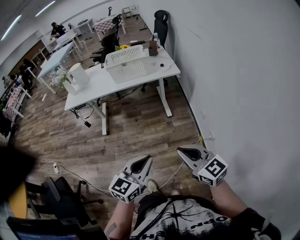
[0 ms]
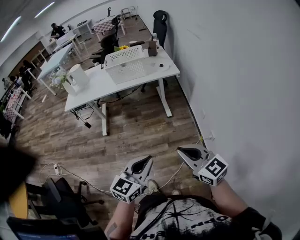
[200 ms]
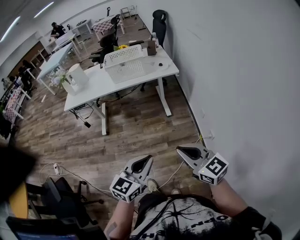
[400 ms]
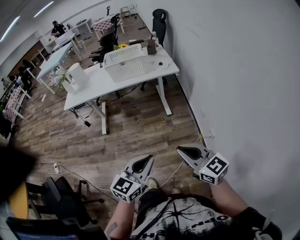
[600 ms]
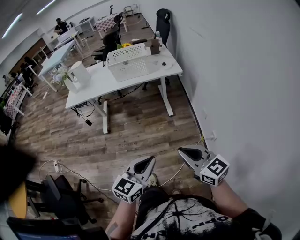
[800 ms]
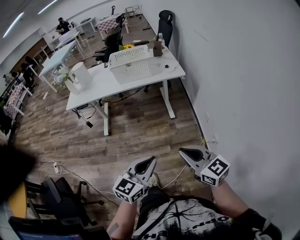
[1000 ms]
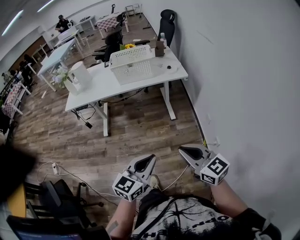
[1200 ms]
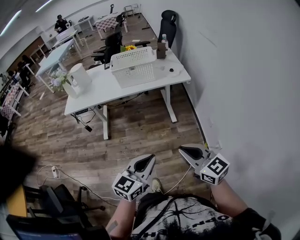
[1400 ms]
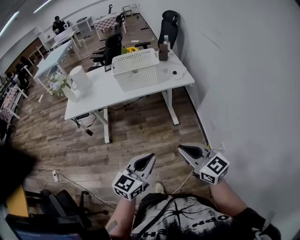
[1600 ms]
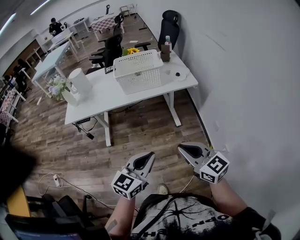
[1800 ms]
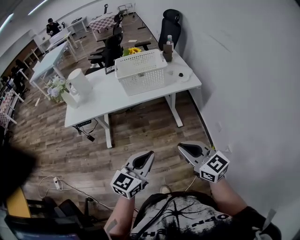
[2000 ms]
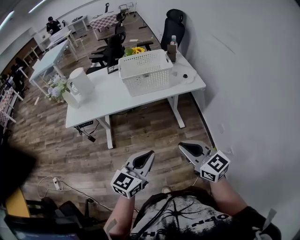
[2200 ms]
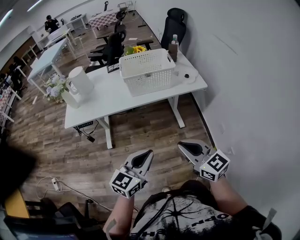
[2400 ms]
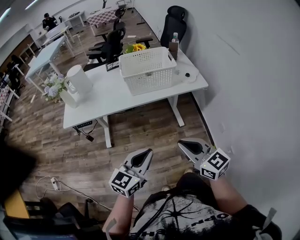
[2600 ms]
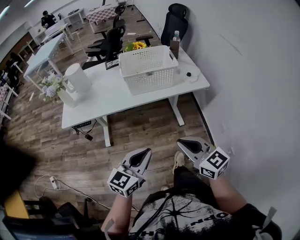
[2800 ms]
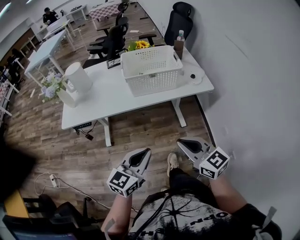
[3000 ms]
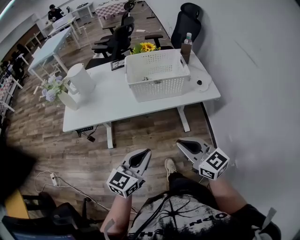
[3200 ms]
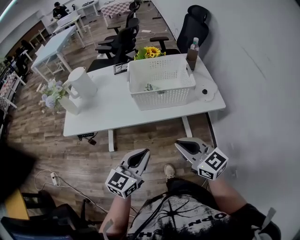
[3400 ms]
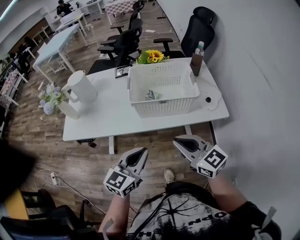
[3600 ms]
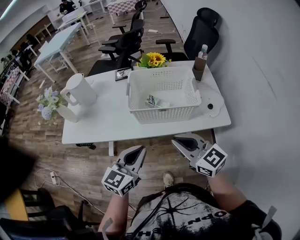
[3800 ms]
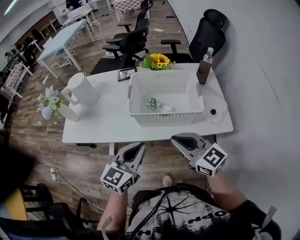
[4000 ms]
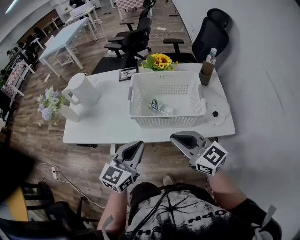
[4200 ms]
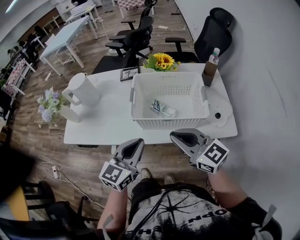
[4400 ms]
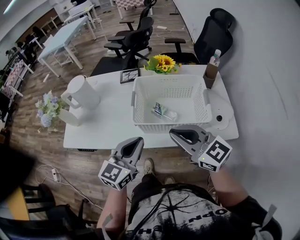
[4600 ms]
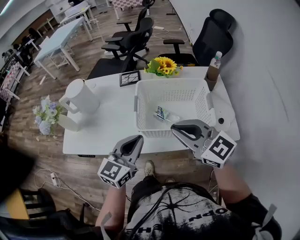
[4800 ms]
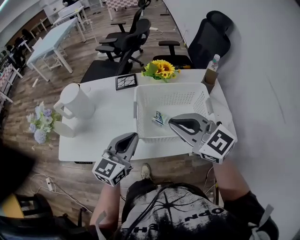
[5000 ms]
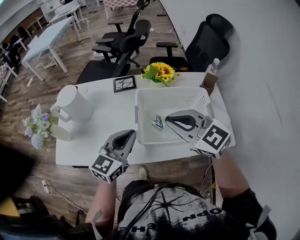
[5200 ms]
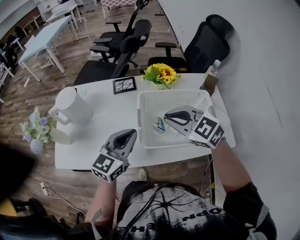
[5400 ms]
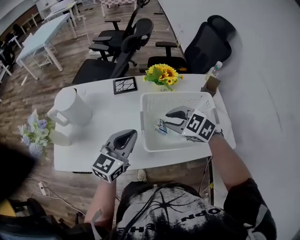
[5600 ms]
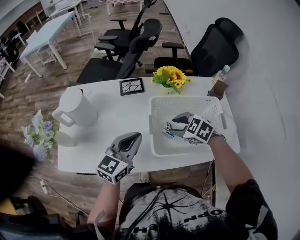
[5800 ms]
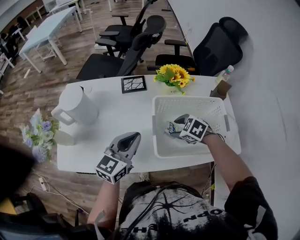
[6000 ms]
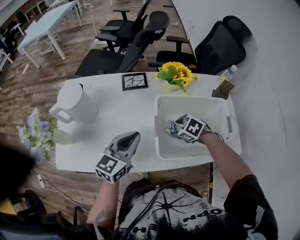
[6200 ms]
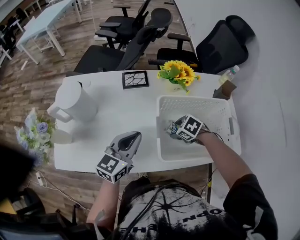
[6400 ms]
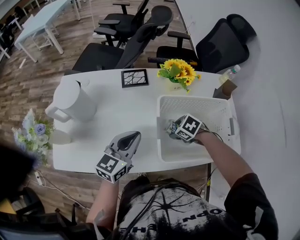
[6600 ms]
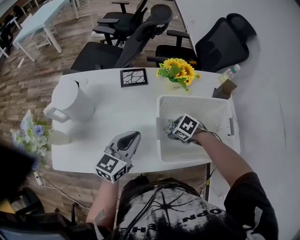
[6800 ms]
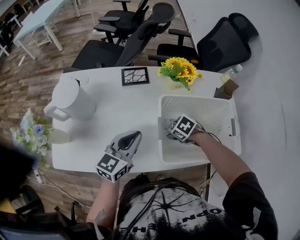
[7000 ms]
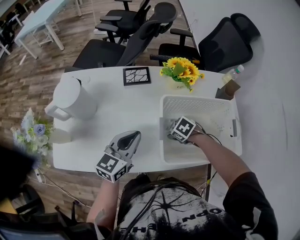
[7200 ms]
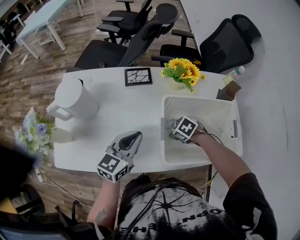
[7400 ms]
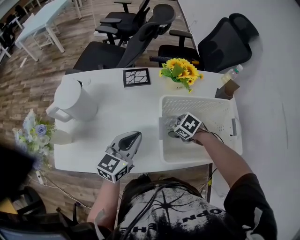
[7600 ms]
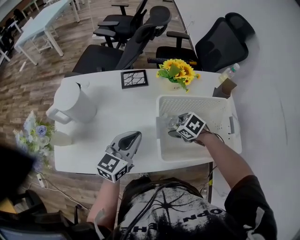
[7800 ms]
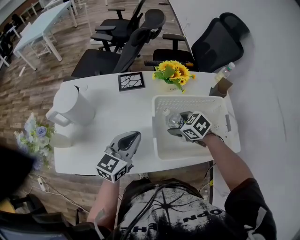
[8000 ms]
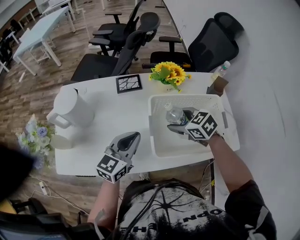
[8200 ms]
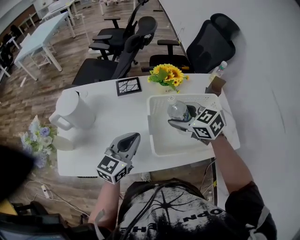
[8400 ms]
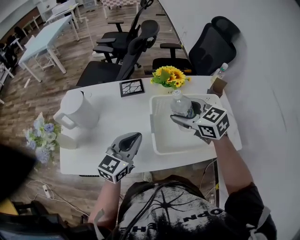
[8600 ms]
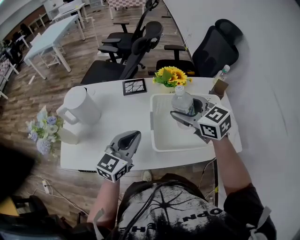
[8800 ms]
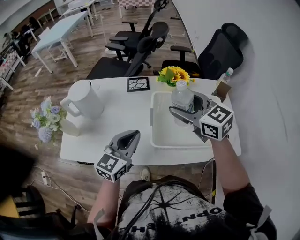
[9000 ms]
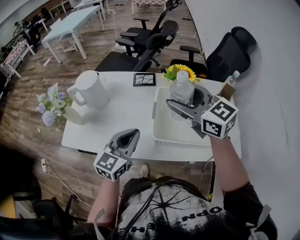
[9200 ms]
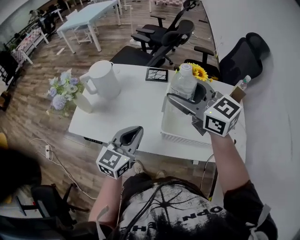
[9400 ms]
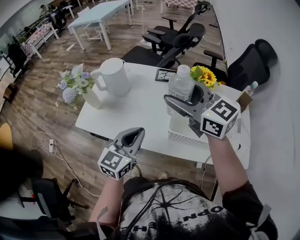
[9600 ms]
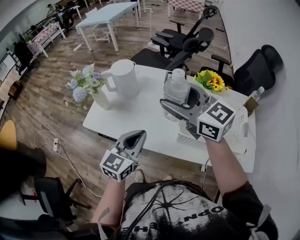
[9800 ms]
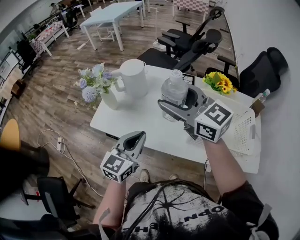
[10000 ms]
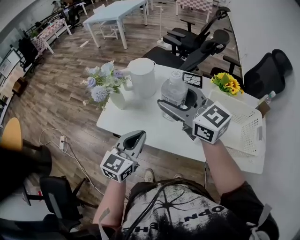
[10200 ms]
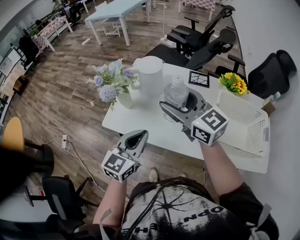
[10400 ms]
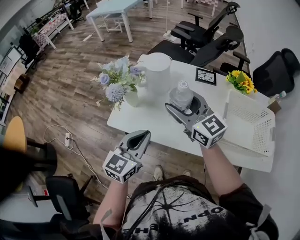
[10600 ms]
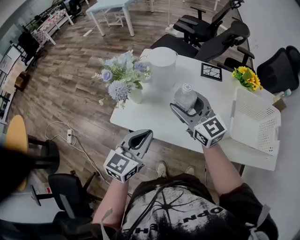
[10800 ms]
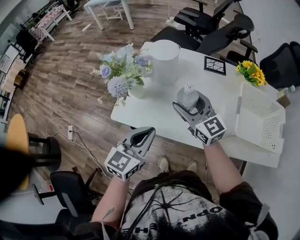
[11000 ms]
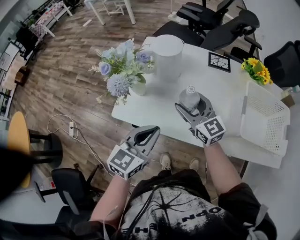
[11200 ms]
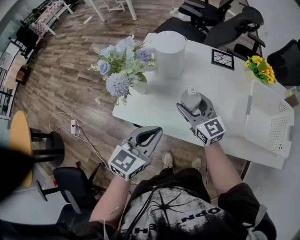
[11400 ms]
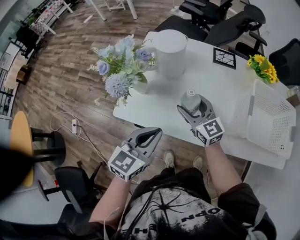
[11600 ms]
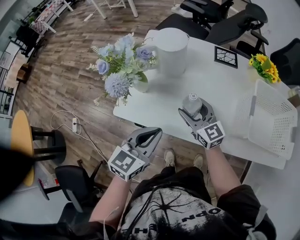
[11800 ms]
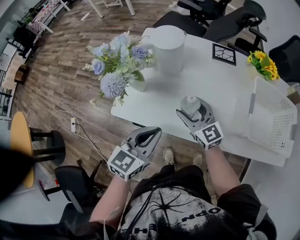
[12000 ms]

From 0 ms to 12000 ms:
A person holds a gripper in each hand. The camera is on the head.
From 0 ms to 1600 ms: Both grippers move forward and to the left, some 20 cm.
From 1600 ms to 3000 ms: The grippers both shift forward and to the left by roughly 25 cm.
From 3000 ms to 4400 ms: The grippers both shift forward by some 30 cm.
From 4400 ms to 6000 ms: The right gripper travels forward and downward by some 30 cm, tilts its fingers approximately 60 degrees downward, and opens up. The left gripper moves forward and to the left, some 25 cm.
From 6000 ms to 7600 ms: The left gripper ends up some 5 cm from where it was. The right gripper moves downward, approximately 5 cm.
From 7600 ms to 9000 ms: The left gripper goes about 10 cm upward and backward. Meanwhile the right gripper moves upward, roughly 30 cm, and angles its fingers upward, by roughly 50 degrees.
From 9000 ms to 10400 ms: Both grippers travel together to the left, approximately 25 cm. The right gripper swivels some 20 degrees.
From 10400 ms to 12000 ms: The left gripper is displaced downward by approximately 10 cm. Meanwhile the right gripper shifts approximately 25 cm downward.

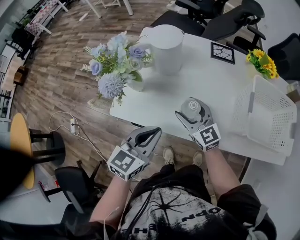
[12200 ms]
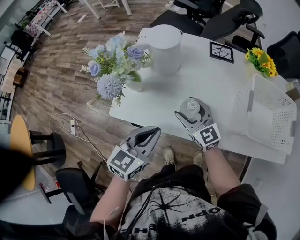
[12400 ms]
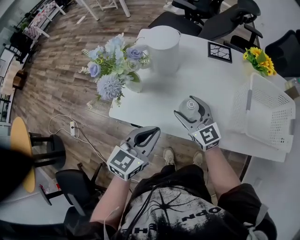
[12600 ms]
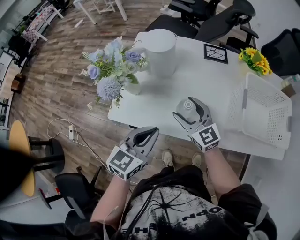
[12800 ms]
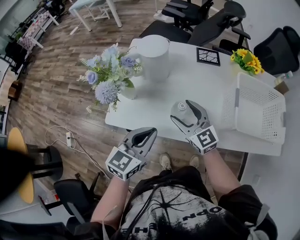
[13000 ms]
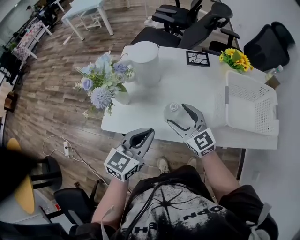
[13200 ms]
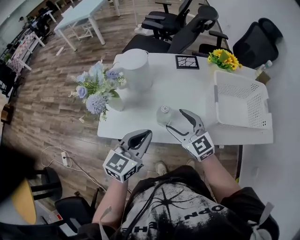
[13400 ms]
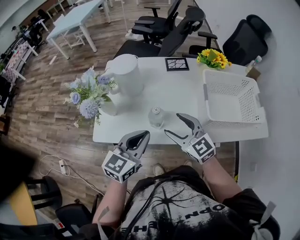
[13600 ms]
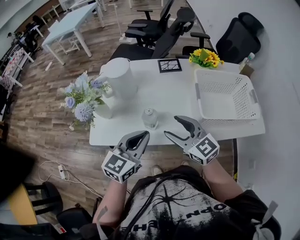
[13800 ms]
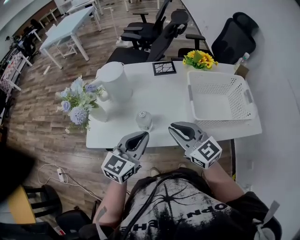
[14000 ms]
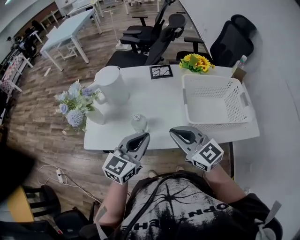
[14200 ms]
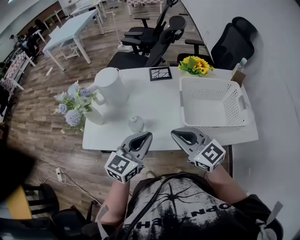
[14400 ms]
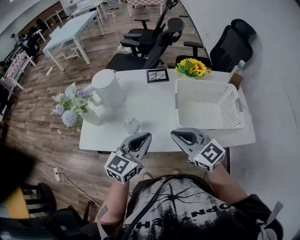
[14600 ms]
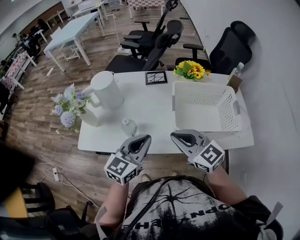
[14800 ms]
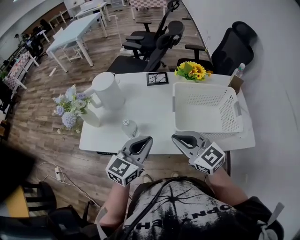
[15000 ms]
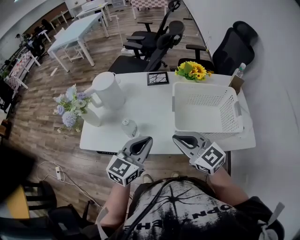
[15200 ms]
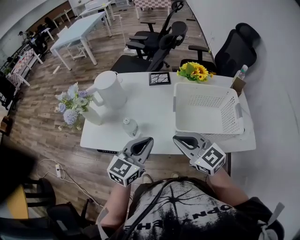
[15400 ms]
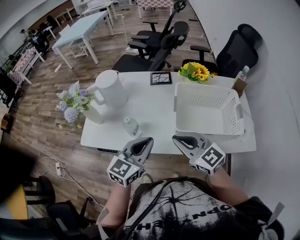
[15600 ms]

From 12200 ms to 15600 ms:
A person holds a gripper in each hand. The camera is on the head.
From 12200 ms to 13800 ms: The right gripper heads upward, to the right and backward, covering roughly 15 cm; the left gripper heads to the right and upward, covering about 10 cm.
From 13800 ms to 15600 ms: Both grippers move to the right, about 10 cm. The right gripper closes up.

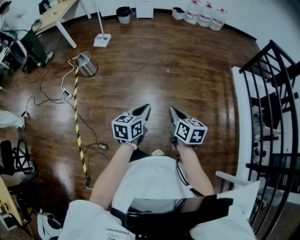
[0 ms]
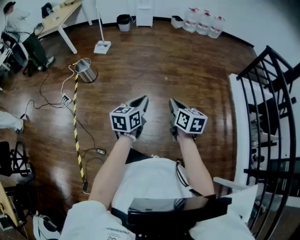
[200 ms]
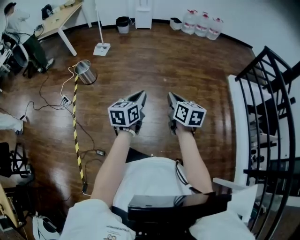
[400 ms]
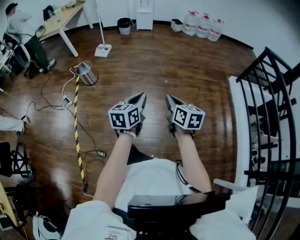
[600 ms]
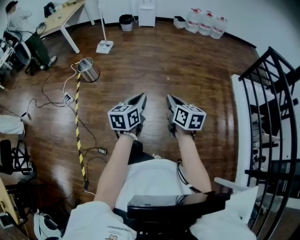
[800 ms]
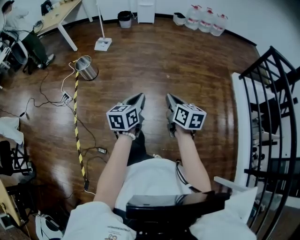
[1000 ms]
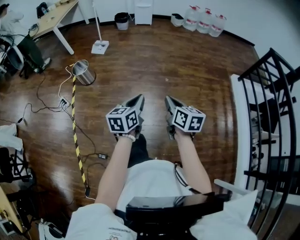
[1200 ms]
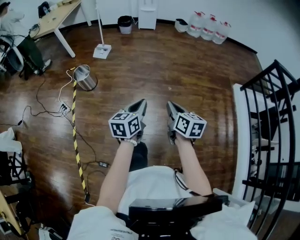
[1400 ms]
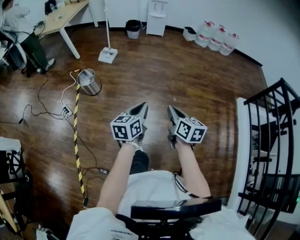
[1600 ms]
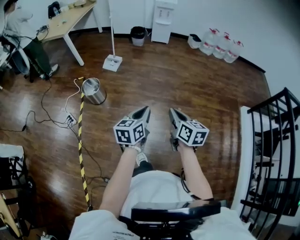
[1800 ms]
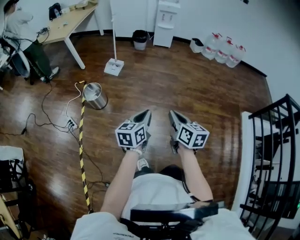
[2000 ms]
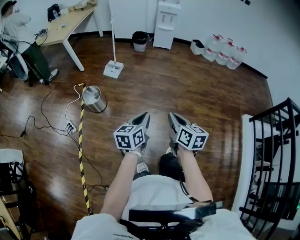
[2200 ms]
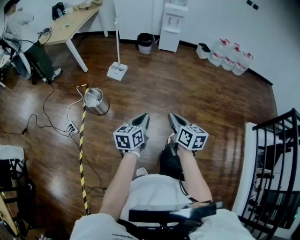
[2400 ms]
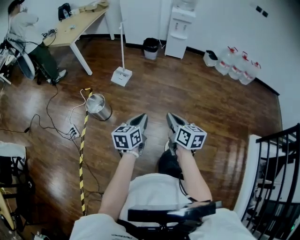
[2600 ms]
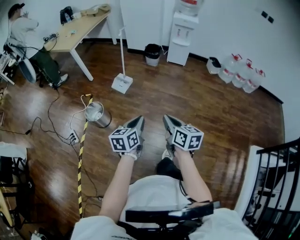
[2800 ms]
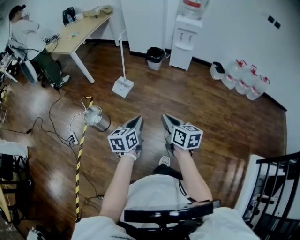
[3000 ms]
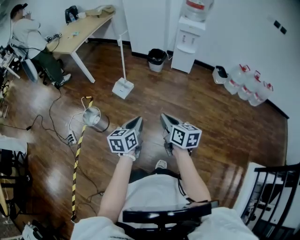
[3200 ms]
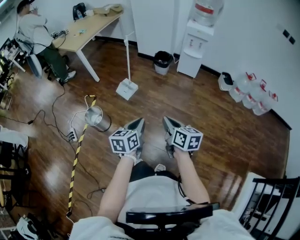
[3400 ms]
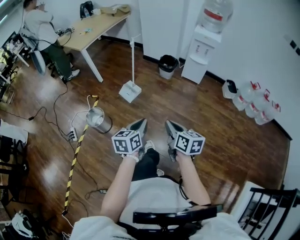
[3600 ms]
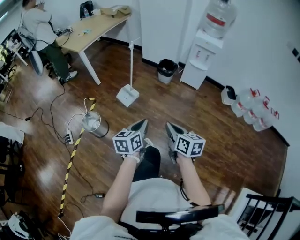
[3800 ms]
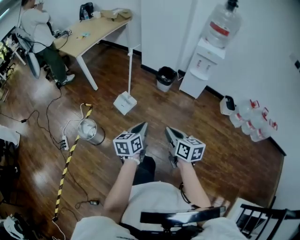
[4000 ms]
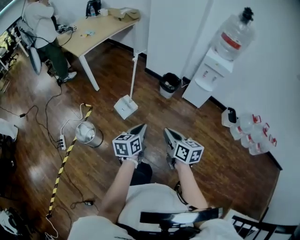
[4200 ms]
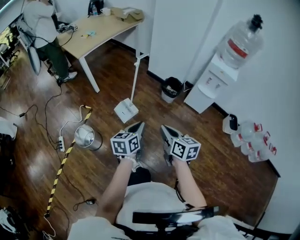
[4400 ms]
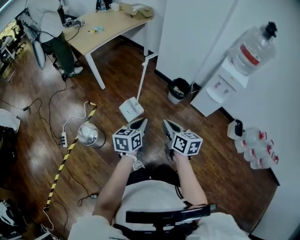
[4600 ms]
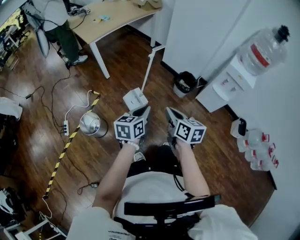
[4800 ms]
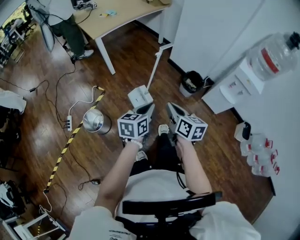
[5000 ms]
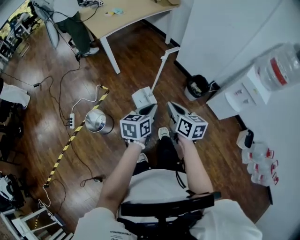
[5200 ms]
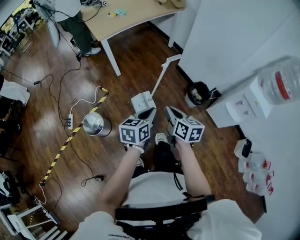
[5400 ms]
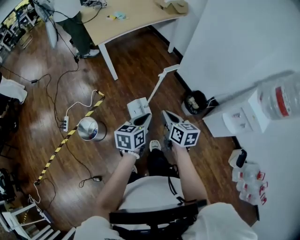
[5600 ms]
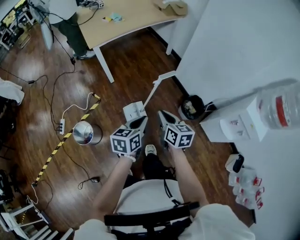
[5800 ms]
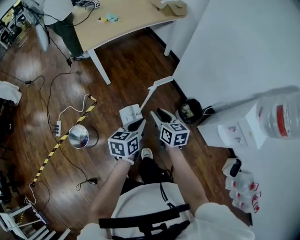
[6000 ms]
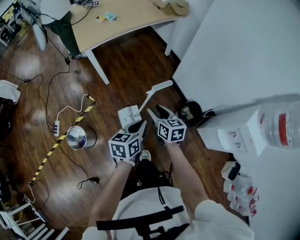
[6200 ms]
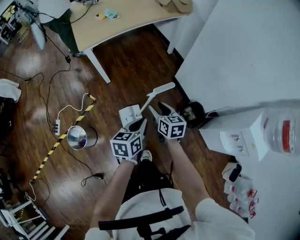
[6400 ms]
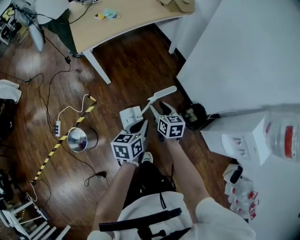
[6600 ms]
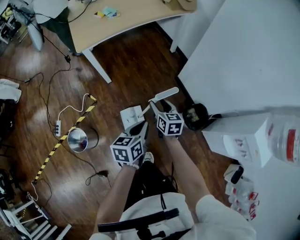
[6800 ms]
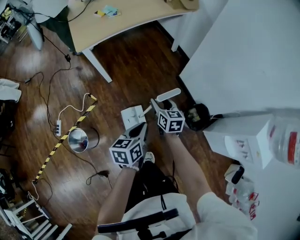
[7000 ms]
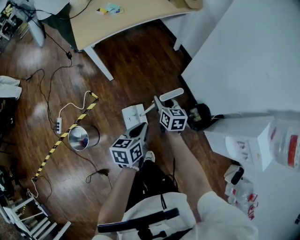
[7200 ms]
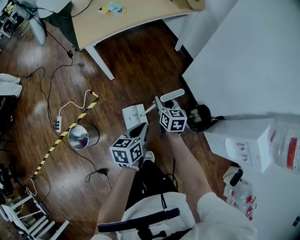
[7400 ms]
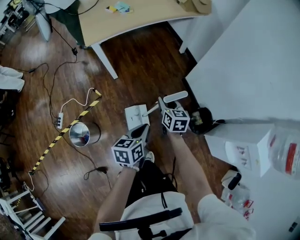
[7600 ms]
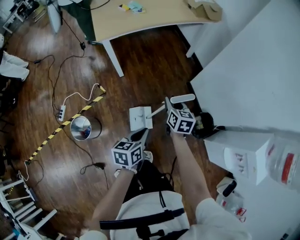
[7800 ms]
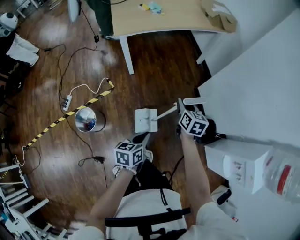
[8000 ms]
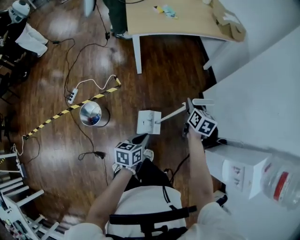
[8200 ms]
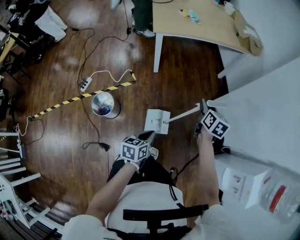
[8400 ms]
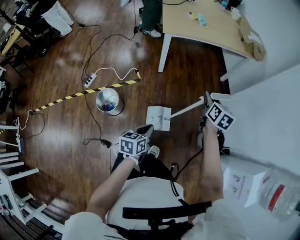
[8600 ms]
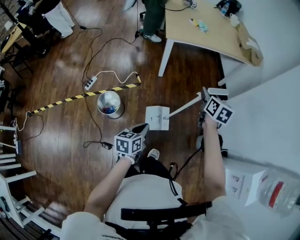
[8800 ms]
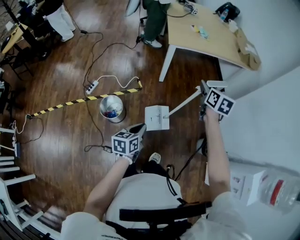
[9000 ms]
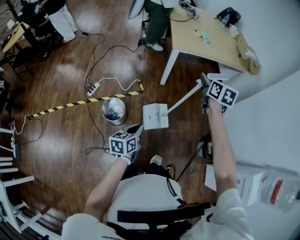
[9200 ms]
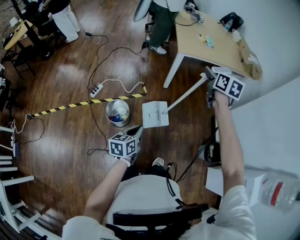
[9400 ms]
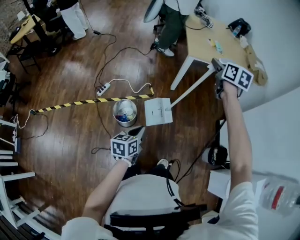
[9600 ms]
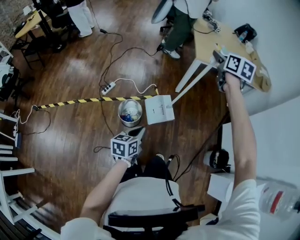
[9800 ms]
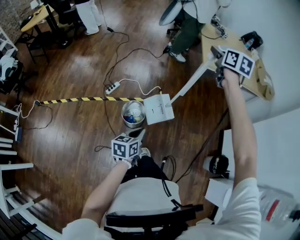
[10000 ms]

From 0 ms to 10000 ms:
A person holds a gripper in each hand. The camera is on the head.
From 0 ms to 1400 ms: The left gripper goes some 20 cm forward and to the left. The right gripper is displaced forward by approximately 20 cm.
From 1400 ms to 2800 ms: The pair of grippers is taken forward, roughly 50 cm.
From 2800 ms to 4200 ms: Both grippers travel together forward, some 40 cm.
From 4200 ms to 5800 ms: The two grippers go approximately 40 cm forward. The right gripper rotates some 20 degrees.
From 5800 ms to 7200 ms: The right gripper heads forward and downward, covering approximately 30 cm, and opens its fingers. The left gripper shifts roughly 15 cm forward and downward.
From 7200 ms to 8600 ms: The right gripper travels upward and to the left by approximately 20 cm. The left gripper shifts about 25 cm backward and to the left.
From 8600 ms to 10000 ms: The left gripper moves to the left, approximately 30 cm; the right gripper shifts about 50 cm to the left and upward, and turns by approximately 30 degrees.
